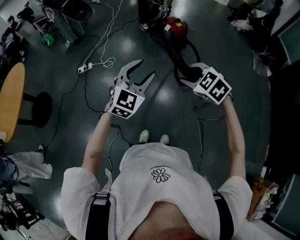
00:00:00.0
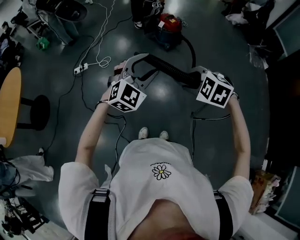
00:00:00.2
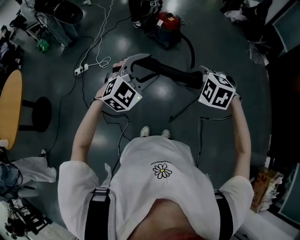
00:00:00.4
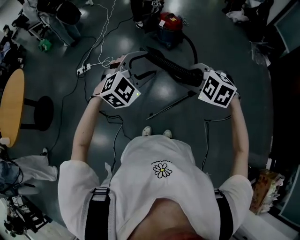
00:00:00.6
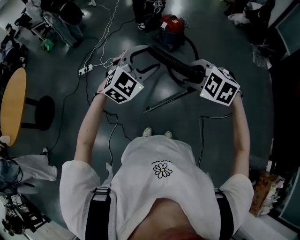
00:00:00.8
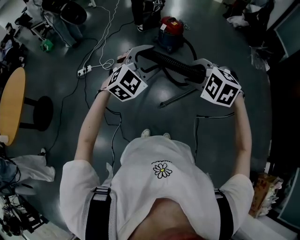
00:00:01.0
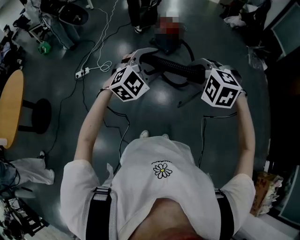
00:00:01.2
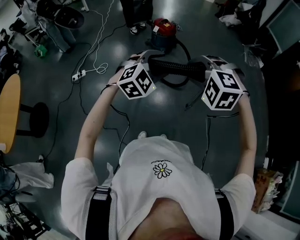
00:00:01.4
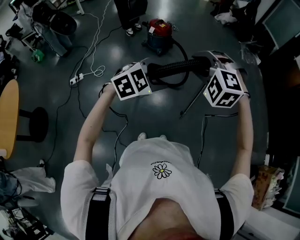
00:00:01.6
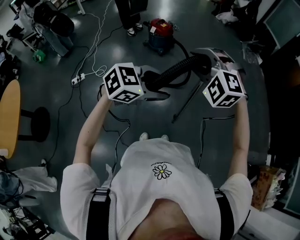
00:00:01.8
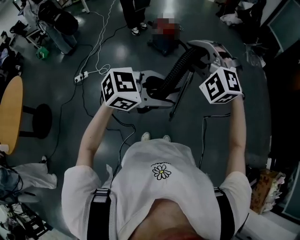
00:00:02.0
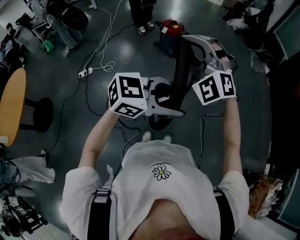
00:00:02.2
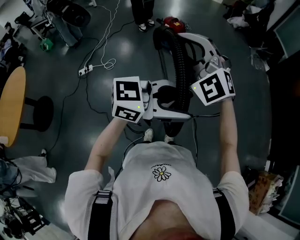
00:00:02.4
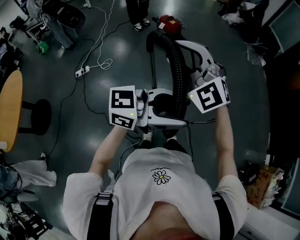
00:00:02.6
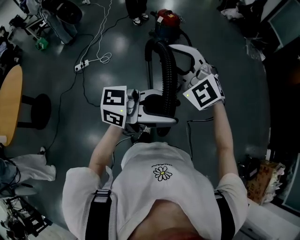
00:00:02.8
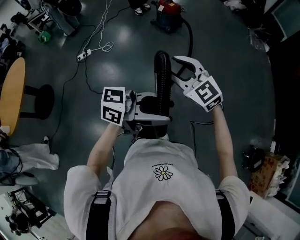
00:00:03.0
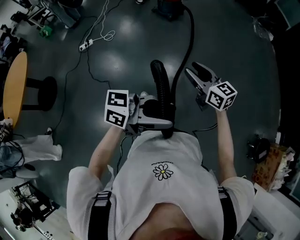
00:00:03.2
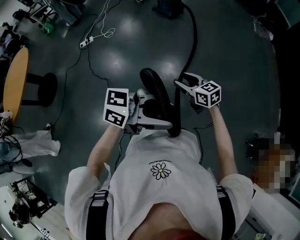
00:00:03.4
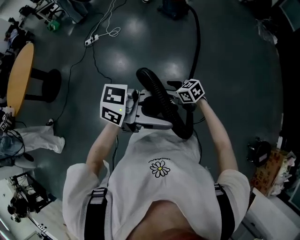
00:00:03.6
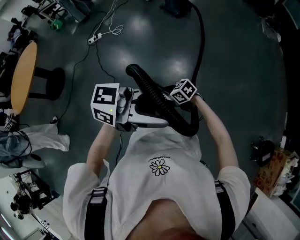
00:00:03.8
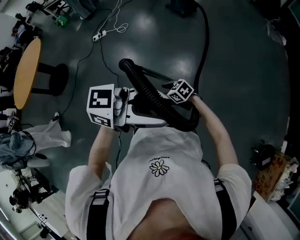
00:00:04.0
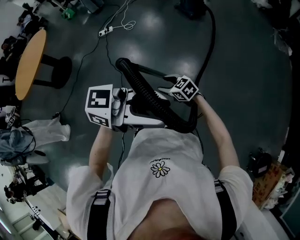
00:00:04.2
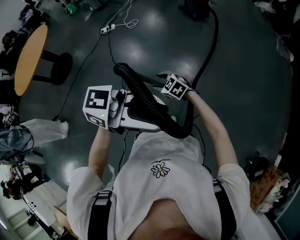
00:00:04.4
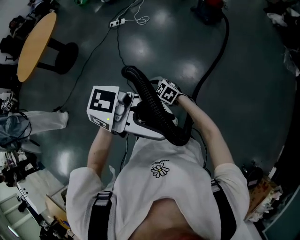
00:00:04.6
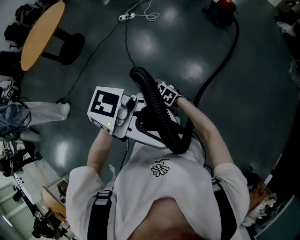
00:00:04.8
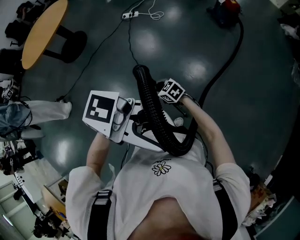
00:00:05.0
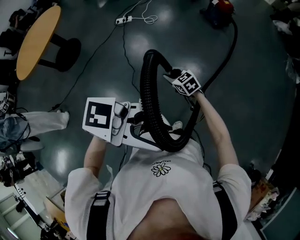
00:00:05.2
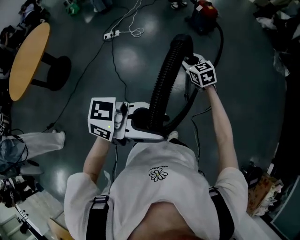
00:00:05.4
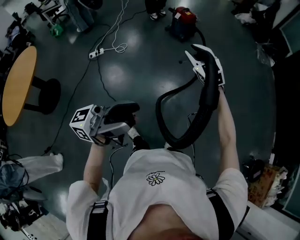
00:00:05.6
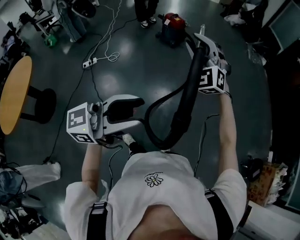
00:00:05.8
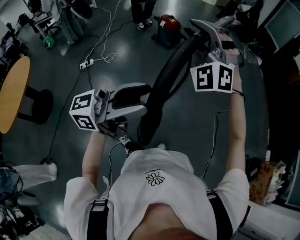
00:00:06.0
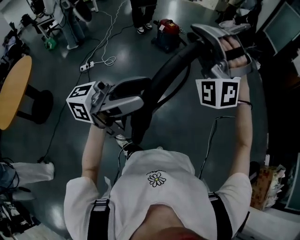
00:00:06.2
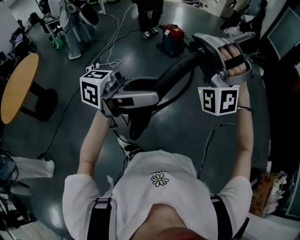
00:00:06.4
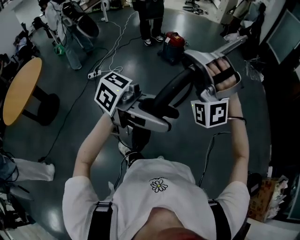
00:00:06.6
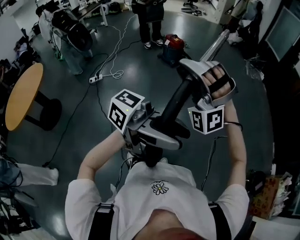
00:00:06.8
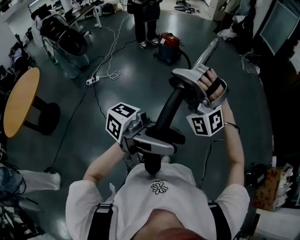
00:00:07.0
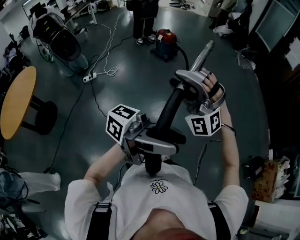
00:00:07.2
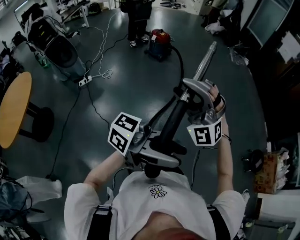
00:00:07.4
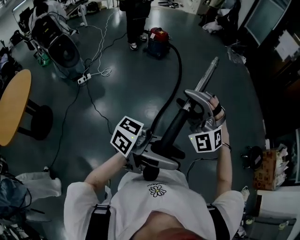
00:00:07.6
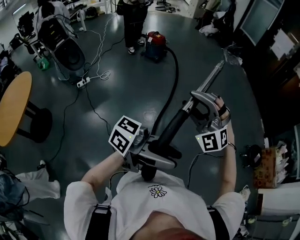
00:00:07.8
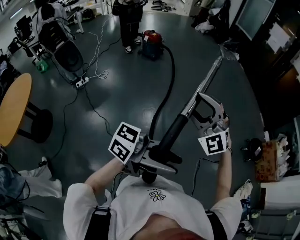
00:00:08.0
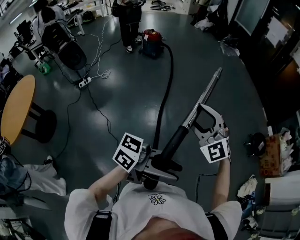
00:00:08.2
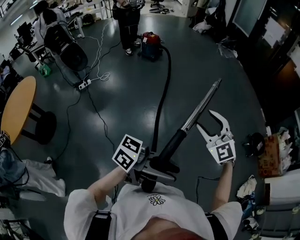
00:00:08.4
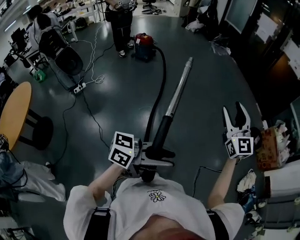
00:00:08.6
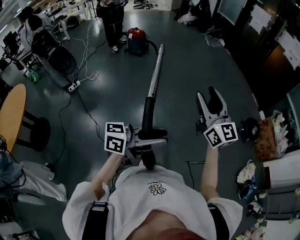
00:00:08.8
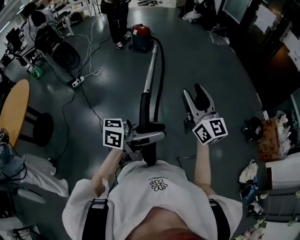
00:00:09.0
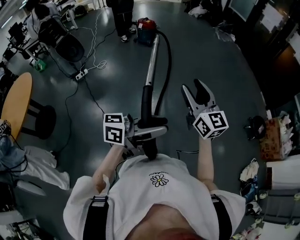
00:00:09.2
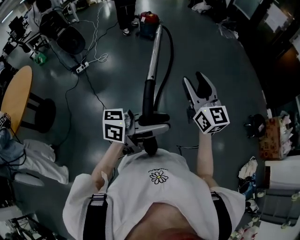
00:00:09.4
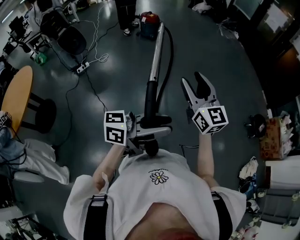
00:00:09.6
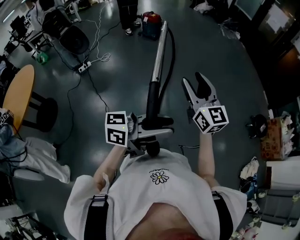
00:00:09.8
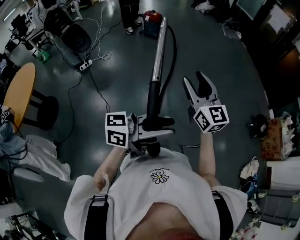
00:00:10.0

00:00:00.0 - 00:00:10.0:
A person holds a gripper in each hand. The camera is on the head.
00:00:00.0 - 00:00:01.4: The left gripper heads to the right, covering roughly 10 cm, and changes its angle by some 30 degrees; the right gripper is displaced upward and backward by some 10 cm, and swivels roughly 30 degrees.
00:00:01.4 - 00:00:02.8: The left gripper shifts by some 30 cm, and points its fingers some 40 degrees further upward, while the right gripper changes place by roughly 15 cm, and points its fingers approximately 40 degrees further upward.
00:00:02.8 - 00:00:04.2: The left gripper moves about 20 cm, while the right gripper shifts approximately 35 cm downward, and swivels about 60 degrees.
00:00:04.2 - 00:00:05.8: The left gripper ends up approximately 25 cm from where it was; the right gripper is displaced upward by approximately 40 cm, and tips its fingers upward by some 30 degrees.
00:00:05.8 - 00:00:07.2: The right gripper ends up about 25 cm from where it was, and changes its angle by roughly 30 degrees. The left gripper changes place by some 20 cm, and swivels approximately 50 degrees.
00:00:07.2 - 00:00:08.6: The right gripper reaches approximately 10 cm downward, then returns, and turns by roughly 70 degrees; the left gripper ends up about 30 cm from where it was, and rotates approximately 20 degrees.
00:00:08.6 - 00:00:10.0: The left gripper travels to the left by about 5 cm, while the right gripper is displaced to the left and backward by roughly 20 cm, and swivels some 20 degrees.

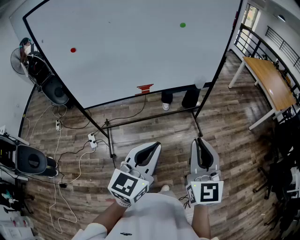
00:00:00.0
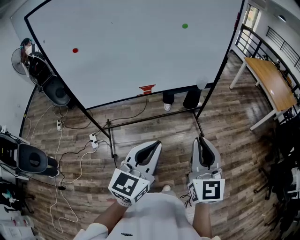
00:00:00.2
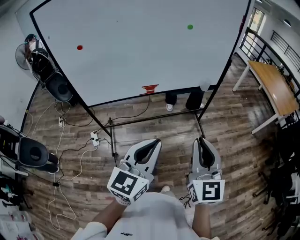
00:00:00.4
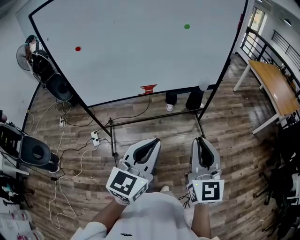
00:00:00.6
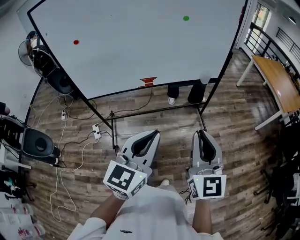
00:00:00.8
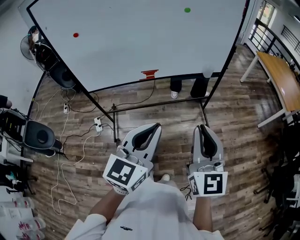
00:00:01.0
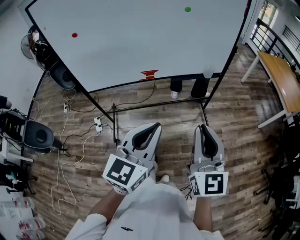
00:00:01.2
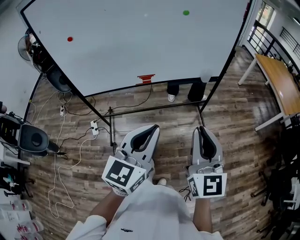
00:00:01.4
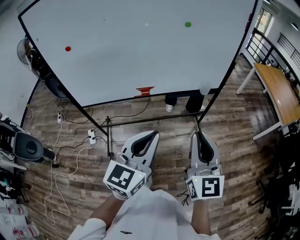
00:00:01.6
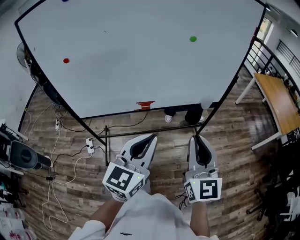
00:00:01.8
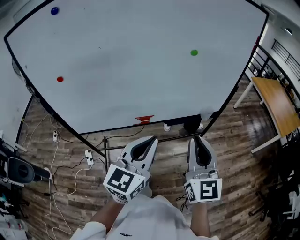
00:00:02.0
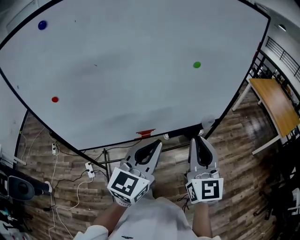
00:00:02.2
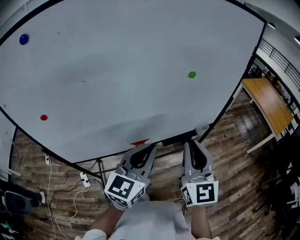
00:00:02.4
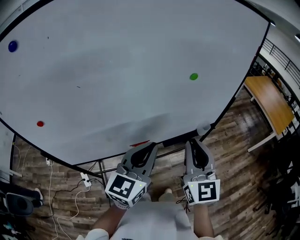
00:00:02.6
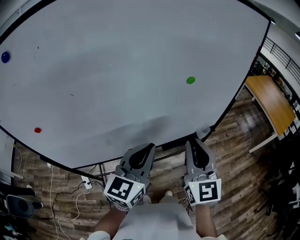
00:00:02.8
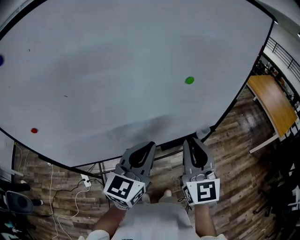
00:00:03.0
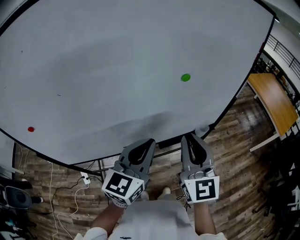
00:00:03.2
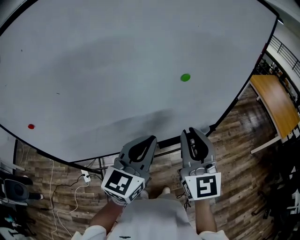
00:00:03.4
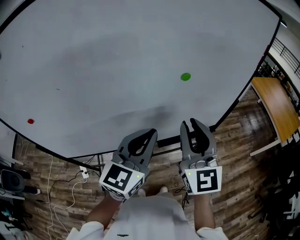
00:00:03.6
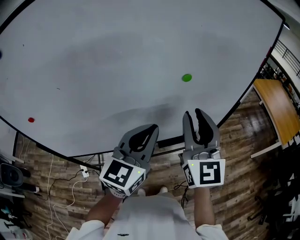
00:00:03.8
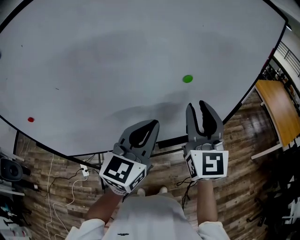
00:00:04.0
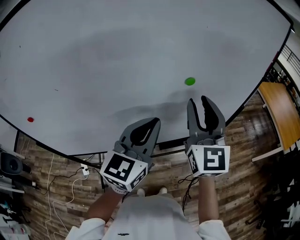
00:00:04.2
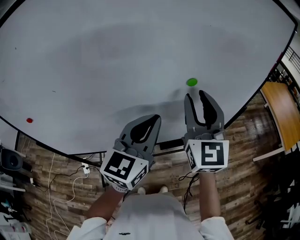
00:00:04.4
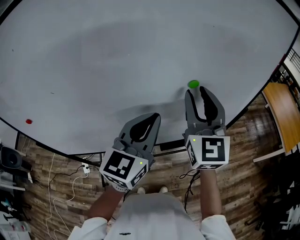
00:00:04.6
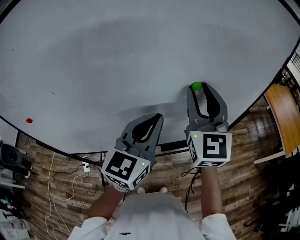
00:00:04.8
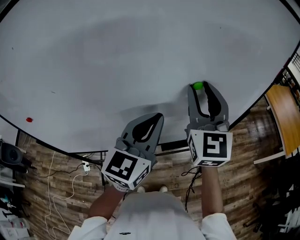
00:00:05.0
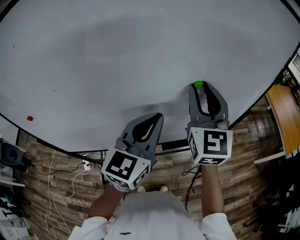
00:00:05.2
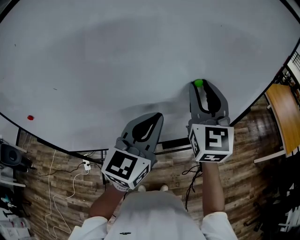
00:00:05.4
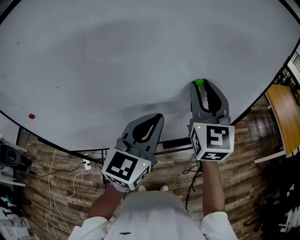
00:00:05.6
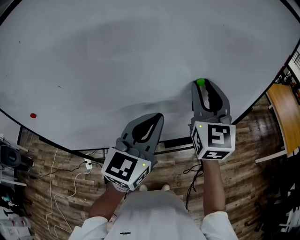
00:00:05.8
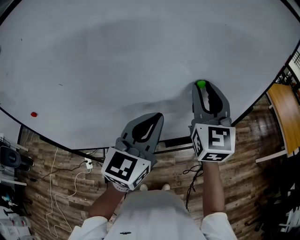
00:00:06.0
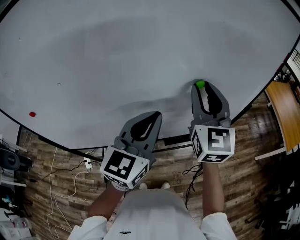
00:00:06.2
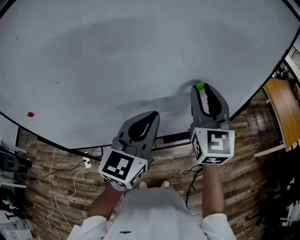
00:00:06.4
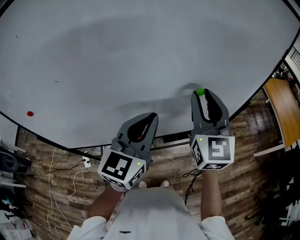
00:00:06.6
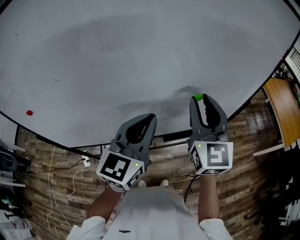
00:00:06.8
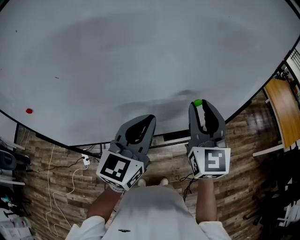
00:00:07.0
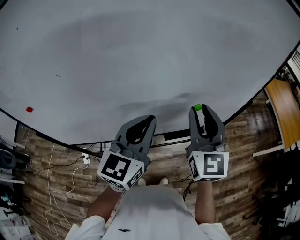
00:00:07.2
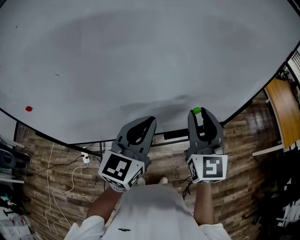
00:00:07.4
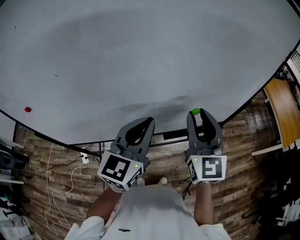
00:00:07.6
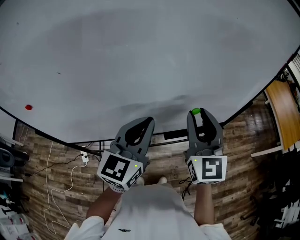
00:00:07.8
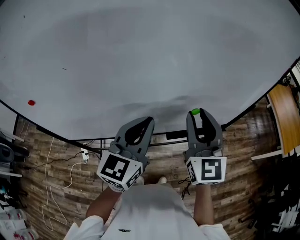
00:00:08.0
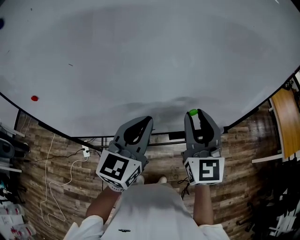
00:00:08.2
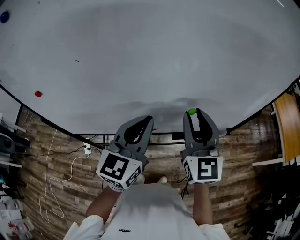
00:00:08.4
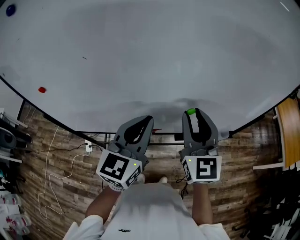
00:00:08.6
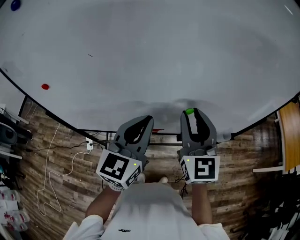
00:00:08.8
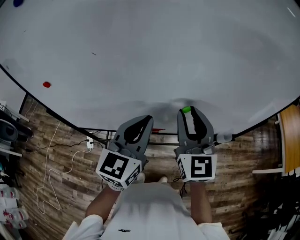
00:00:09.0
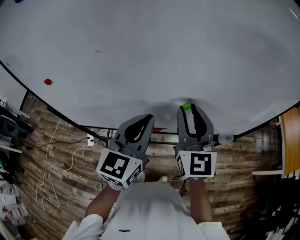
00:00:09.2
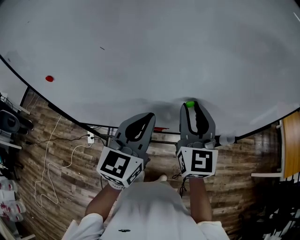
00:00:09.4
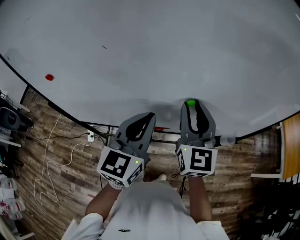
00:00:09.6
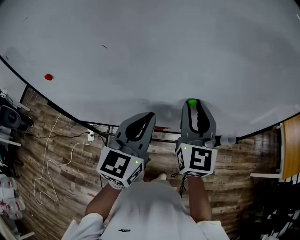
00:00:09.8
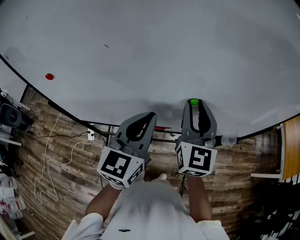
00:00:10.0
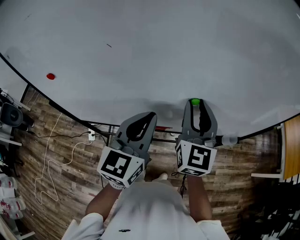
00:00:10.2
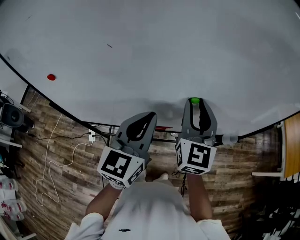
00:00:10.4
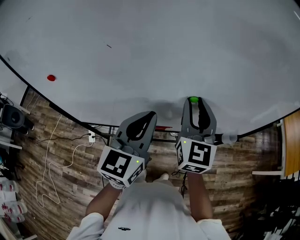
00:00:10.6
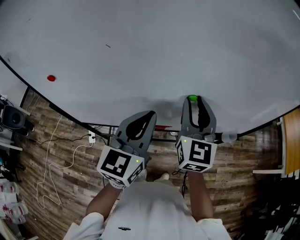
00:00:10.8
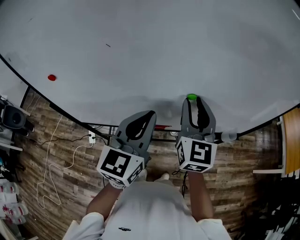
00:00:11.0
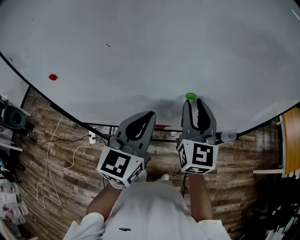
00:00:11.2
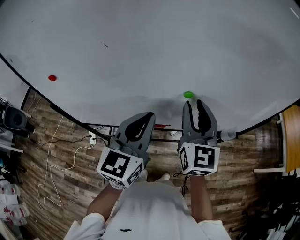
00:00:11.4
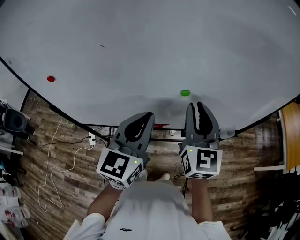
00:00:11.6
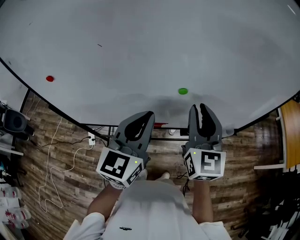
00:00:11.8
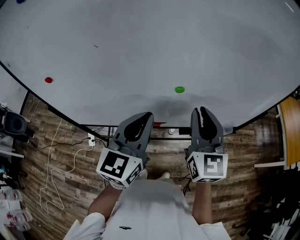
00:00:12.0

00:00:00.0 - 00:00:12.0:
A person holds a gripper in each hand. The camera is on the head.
00:00:00.0 - 00:00:01.6: Both grippers travel together forward, roughly 10 cm.
00:00:01.6 - 00:00:03.0: The grippers both shift forward by some 30 cm.
00:00:03.0 - 00:00:04.4: The left gripper is displaced forward by about 10 cm. The right gripper goes roughly 15 cm forward and upward, and opens.
00:00:04.4 - 00:00:06.0: There are only small adjustments of the grippers.
00:00:06.0 - 00:00:07.6: The left gripper moves about 5 cm. The right gripper goes some 10 cm downward and backward.
00:00:07.6 - 00:00:09.0: The two grippers go some 10 cm to the left.
00:00:09.0 - 00:00:10.4: The right gripper changes place by roughly 5 cm.
00:00:10.4 - 00:00:12.0: The right gripper goes some 10 cm to the right and backward.

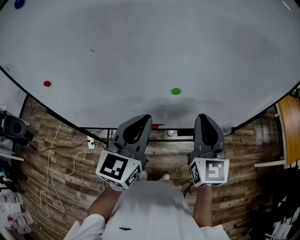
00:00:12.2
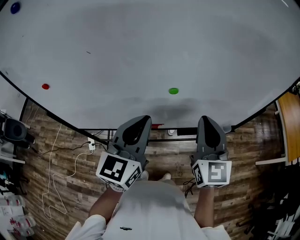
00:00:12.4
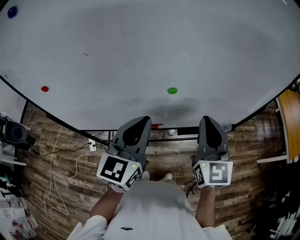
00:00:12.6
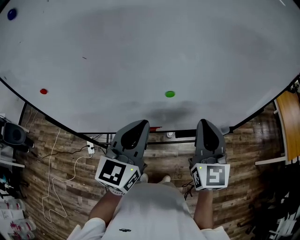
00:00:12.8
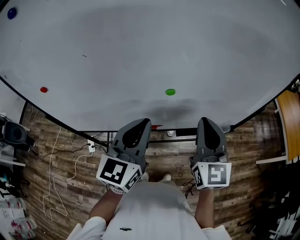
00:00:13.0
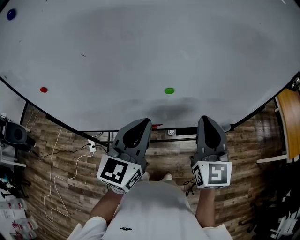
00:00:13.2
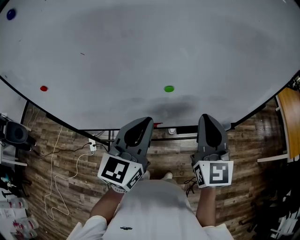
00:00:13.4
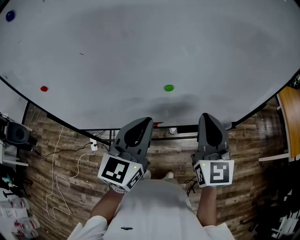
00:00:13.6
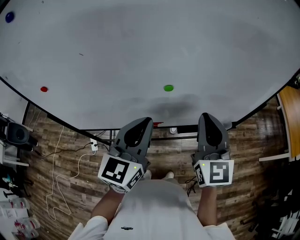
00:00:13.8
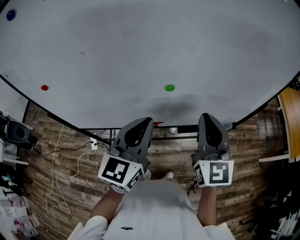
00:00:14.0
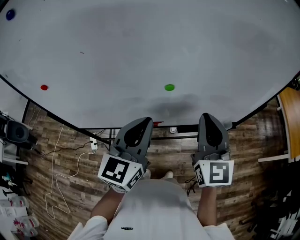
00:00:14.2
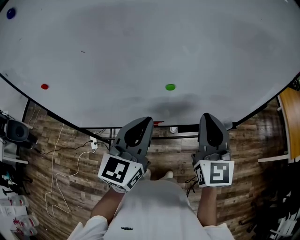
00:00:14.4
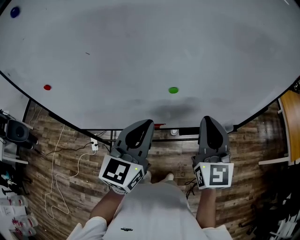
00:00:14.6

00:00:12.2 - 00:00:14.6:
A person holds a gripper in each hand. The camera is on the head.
00:00:12.2 - 00:00:13.4: There are only small adjustments of the grippers.
00:00:13.4 - 00:00:14.6: Both grippers stay put.
